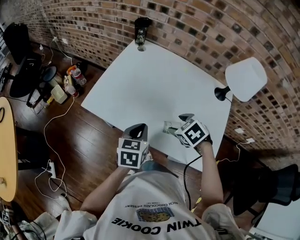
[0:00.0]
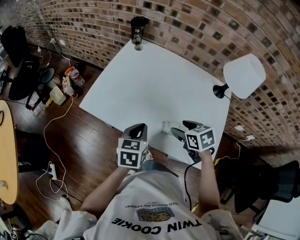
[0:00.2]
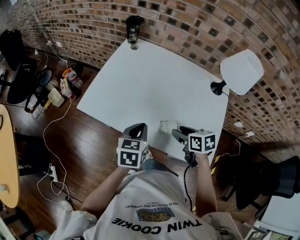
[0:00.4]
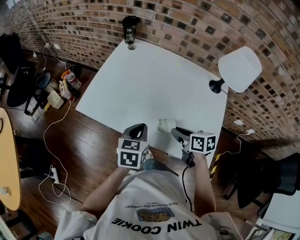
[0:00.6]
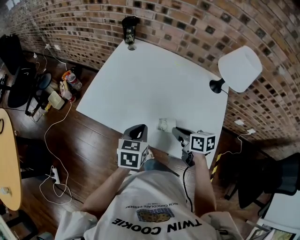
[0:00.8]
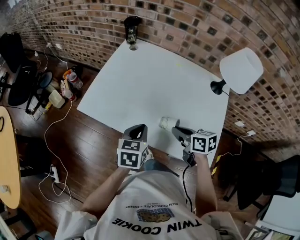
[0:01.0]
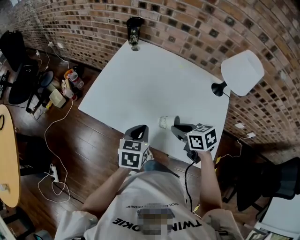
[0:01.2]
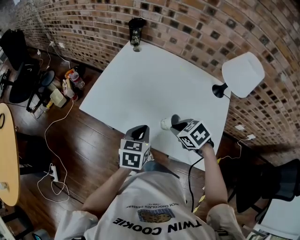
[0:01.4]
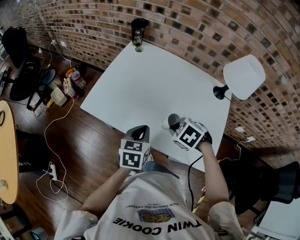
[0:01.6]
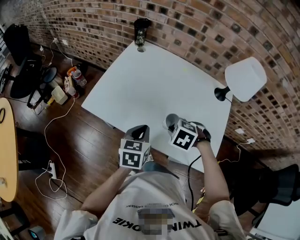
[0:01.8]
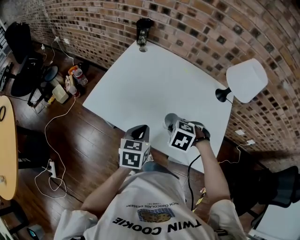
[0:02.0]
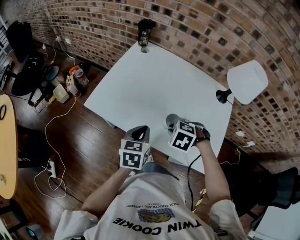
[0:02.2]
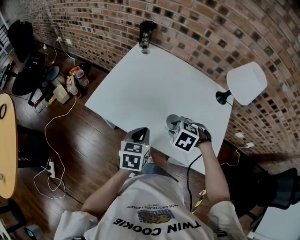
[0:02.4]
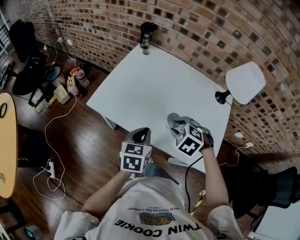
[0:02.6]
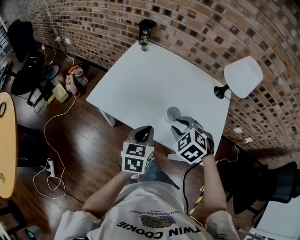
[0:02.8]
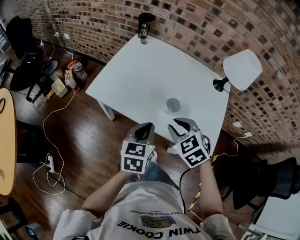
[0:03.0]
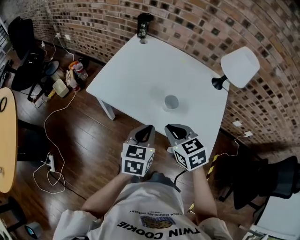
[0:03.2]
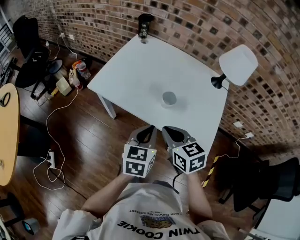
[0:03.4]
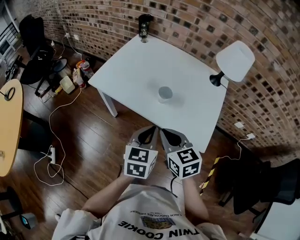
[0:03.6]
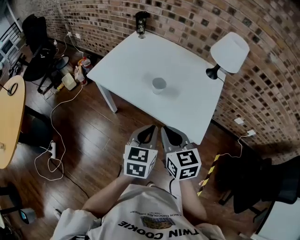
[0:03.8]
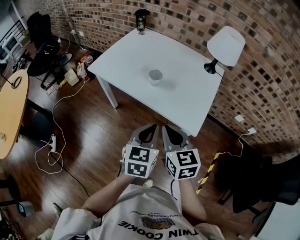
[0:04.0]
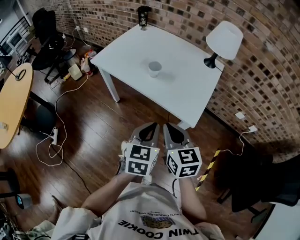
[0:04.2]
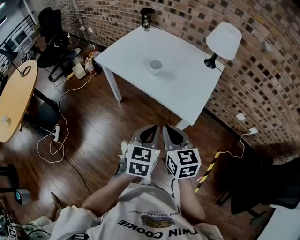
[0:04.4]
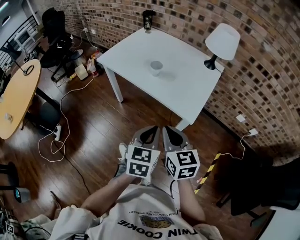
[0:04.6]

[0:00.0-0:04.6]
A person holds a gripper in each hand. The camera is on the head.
0:00.0 to 0:01.6: The right gripper closes its fingers.
0:01.6 to 0:03.0: The left gripper changes place by some 10 cm. The right gripper travels upward by about 10 cm, and rotates some 30 degrees.
0:03.0 to 0:04.6: Both grippers move backward and to the right, about 35 cm. The right gripper swivels some 40 degrees.

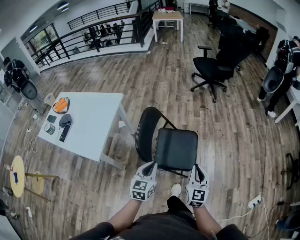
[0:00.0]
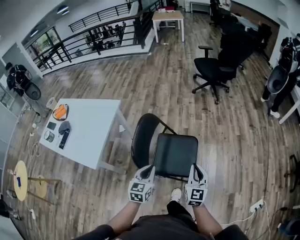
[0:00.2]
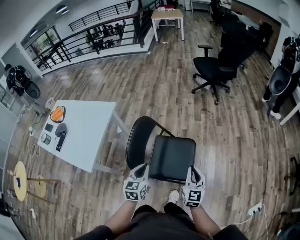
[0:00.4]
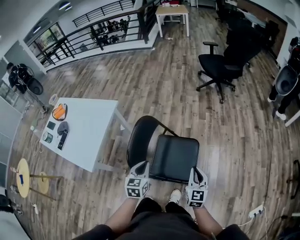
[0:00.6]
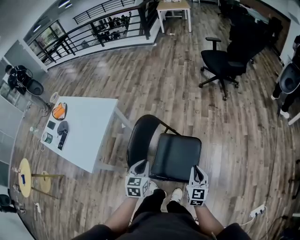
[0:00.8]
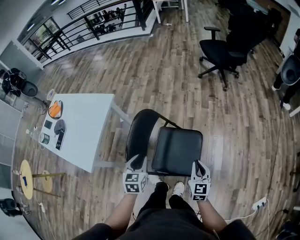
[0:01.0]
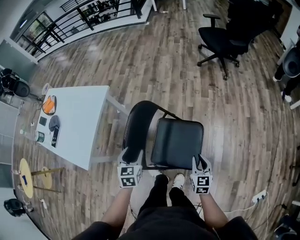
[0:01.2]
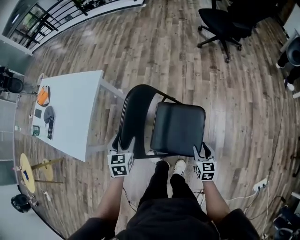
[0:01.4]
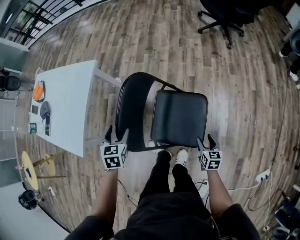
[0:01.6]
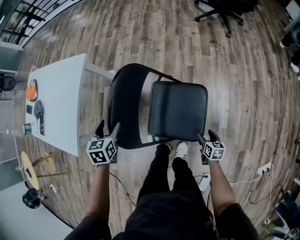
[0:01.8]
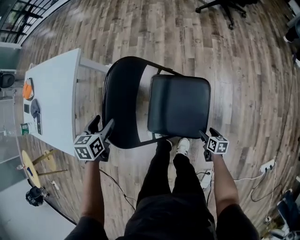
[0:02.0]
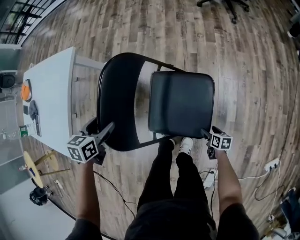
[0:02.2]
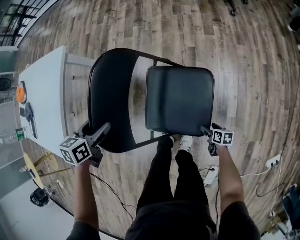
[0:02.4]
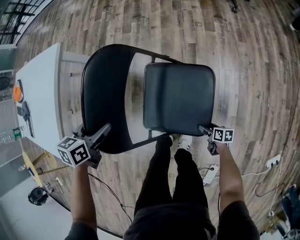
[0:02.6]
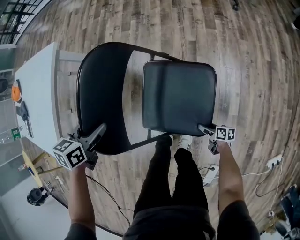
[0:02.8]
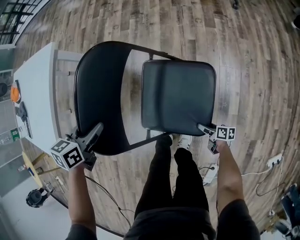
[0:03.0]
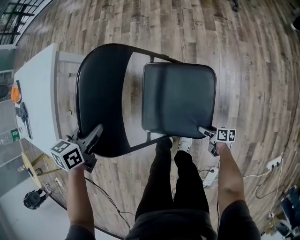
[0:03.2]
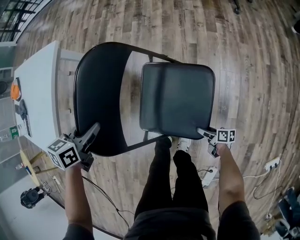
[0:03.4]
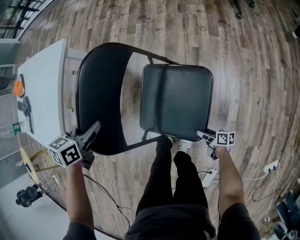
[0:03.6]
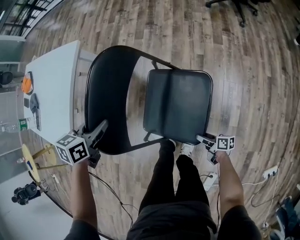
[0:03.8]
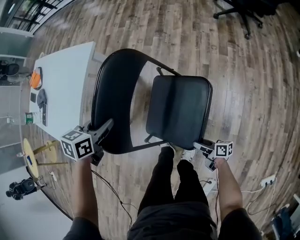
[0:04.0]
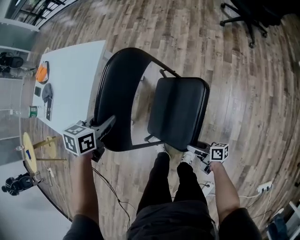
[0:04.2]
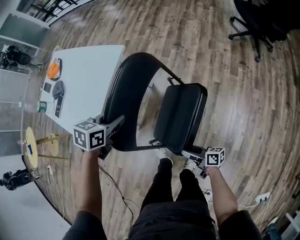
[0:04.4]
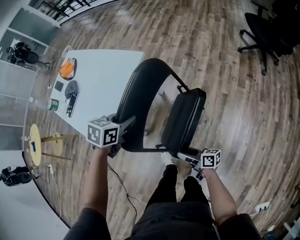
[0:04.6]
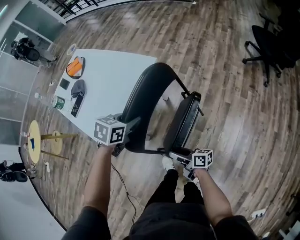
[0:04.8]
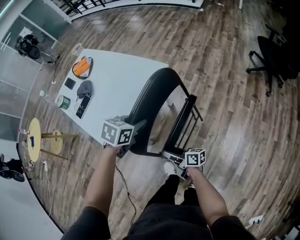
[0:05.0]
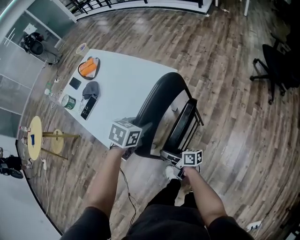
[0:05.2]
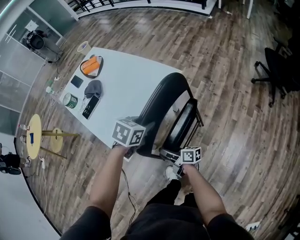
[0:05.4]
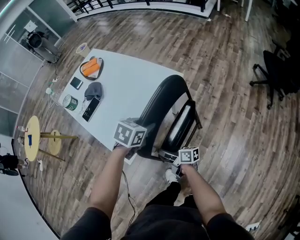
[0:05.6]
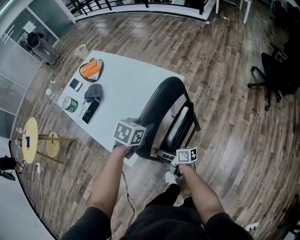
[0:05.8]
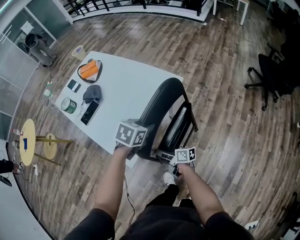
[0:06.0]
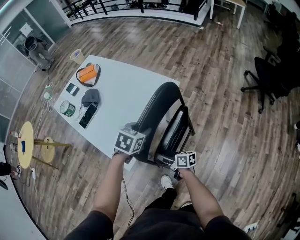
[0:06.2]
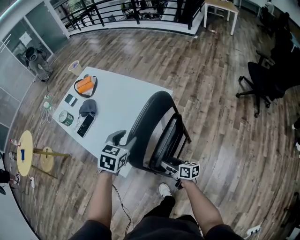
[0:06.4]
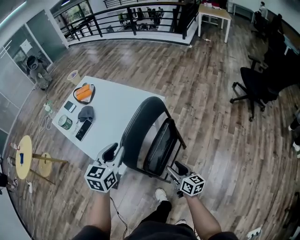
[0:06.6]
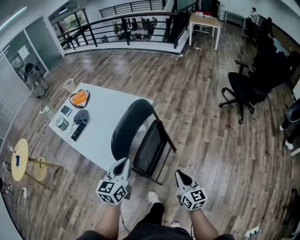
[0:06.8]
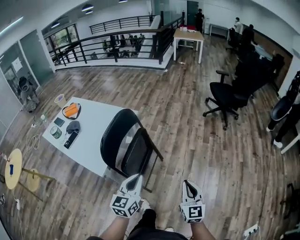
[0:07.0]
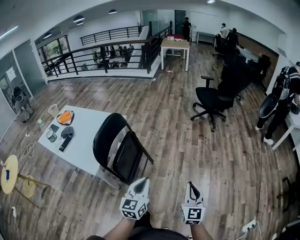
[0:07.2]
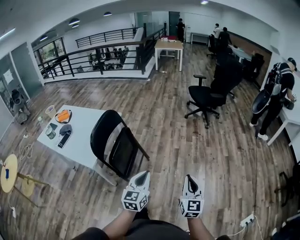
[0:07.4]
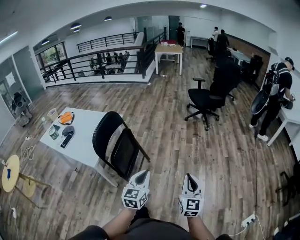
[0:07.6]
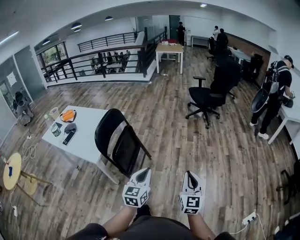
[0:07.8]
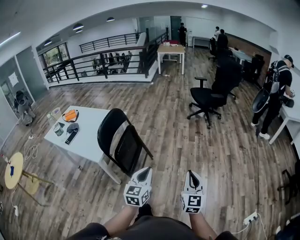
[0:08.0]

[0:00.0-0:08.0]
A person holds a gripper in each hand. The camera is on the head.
0:00.0 to 0:01.6: The right gripper goes about 35 cm downward and forward, points its fingers roughly 30 degrees further downward, and opens its fingers, while the left gripper goes approximately 30 cm forward, downward and to the left, changes its angle by some 30 degrees, and opens up.
0:01.6 to 0:03.2: The right gripper shifts approximately 30 cm downward, and changes its angle by about 50 degrees, while the left gripper heads downward, covering about 10 cm, changes its angle by roughly 30 degrees, and closes its fingers.
0:03.2 to 0:04.8: The left gripper travels upward, to the left and forward by about 25 cm. Meanwhile the right gripper goes about 60 cm upward, to the left and forward, and rotates some 40 degrees.
0:04.8 to 0:06.4: The left gripper heads to the left, upward and forward, covering some 15 cm, changes its angle by some 20 degrees, and opens its fingers, while the right gripper goes roughly 15 cm forward and to the left.
0:06.4 to 0:08.0: The pair of grippers is taken about 60 cm. The left gripper points its fingers approximately 30 degrees further upward, and closes up. Meanwhile the right gripper rotates approximately 80 degrees, and closes up.

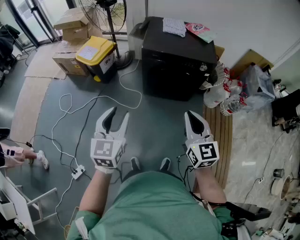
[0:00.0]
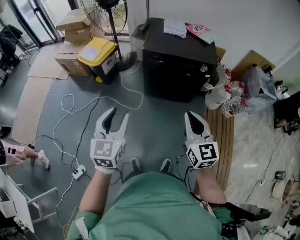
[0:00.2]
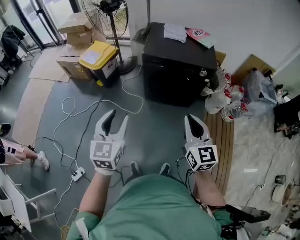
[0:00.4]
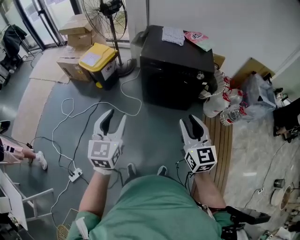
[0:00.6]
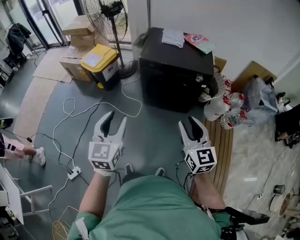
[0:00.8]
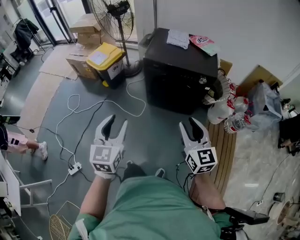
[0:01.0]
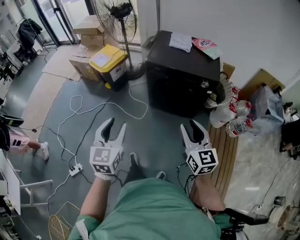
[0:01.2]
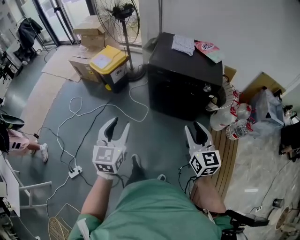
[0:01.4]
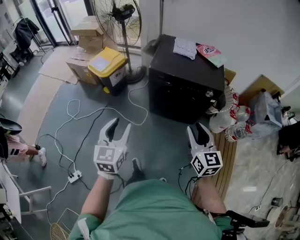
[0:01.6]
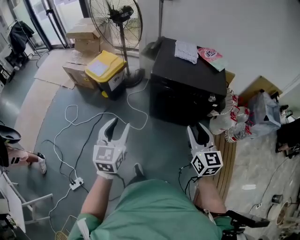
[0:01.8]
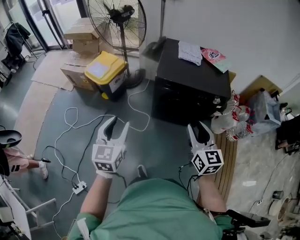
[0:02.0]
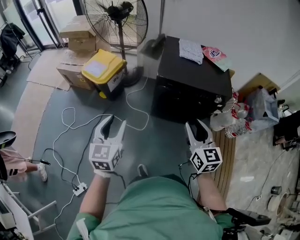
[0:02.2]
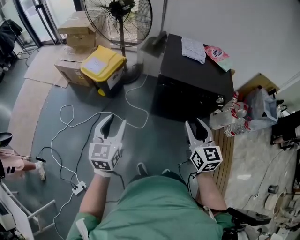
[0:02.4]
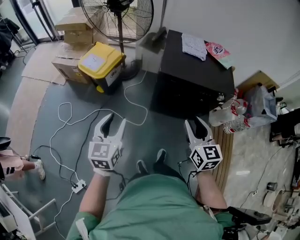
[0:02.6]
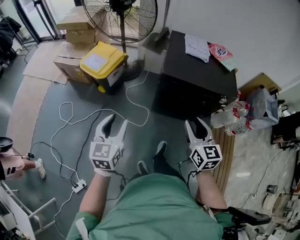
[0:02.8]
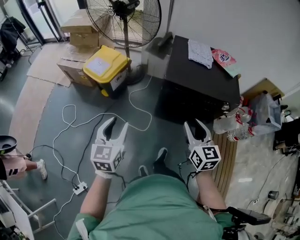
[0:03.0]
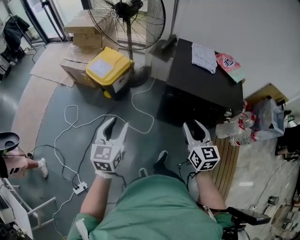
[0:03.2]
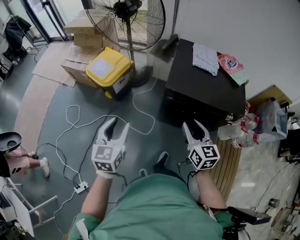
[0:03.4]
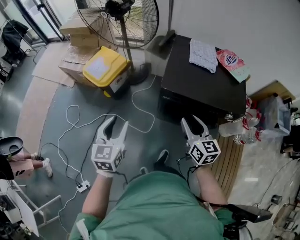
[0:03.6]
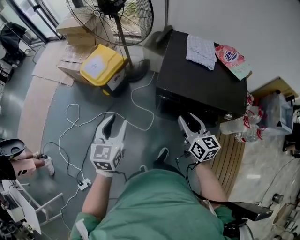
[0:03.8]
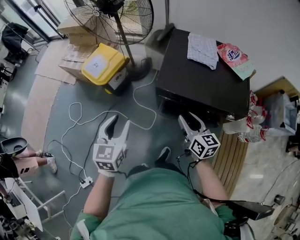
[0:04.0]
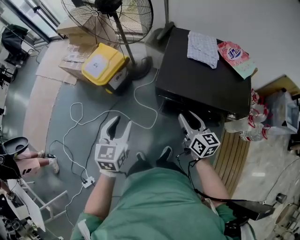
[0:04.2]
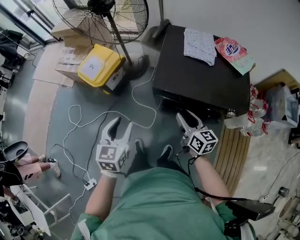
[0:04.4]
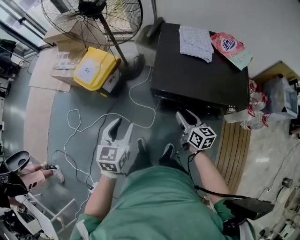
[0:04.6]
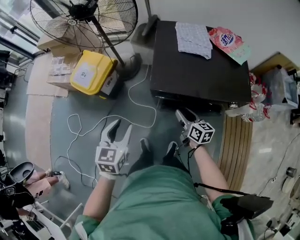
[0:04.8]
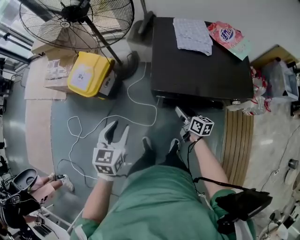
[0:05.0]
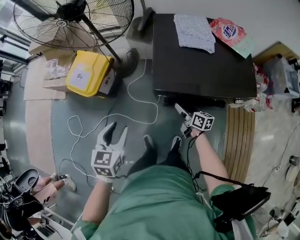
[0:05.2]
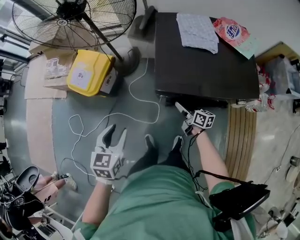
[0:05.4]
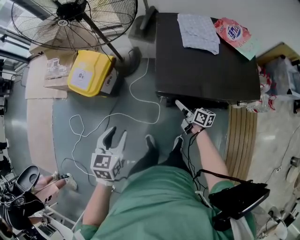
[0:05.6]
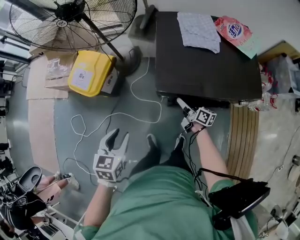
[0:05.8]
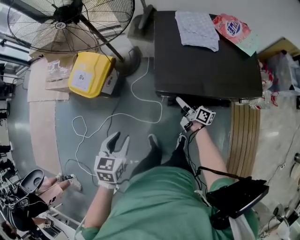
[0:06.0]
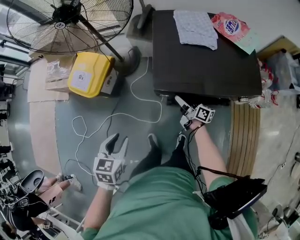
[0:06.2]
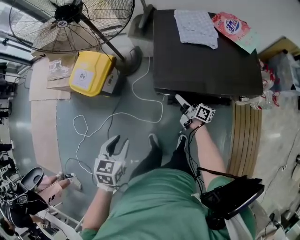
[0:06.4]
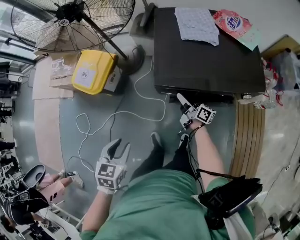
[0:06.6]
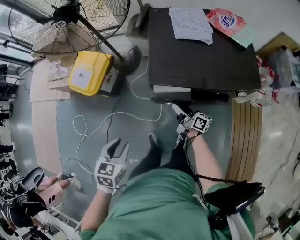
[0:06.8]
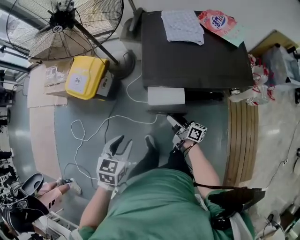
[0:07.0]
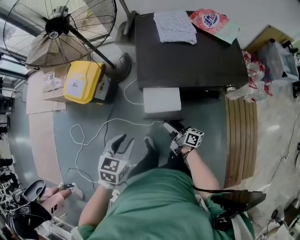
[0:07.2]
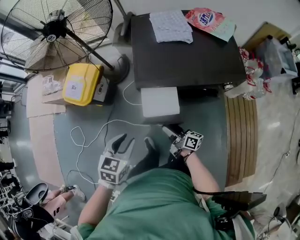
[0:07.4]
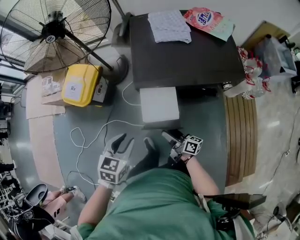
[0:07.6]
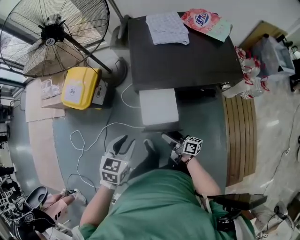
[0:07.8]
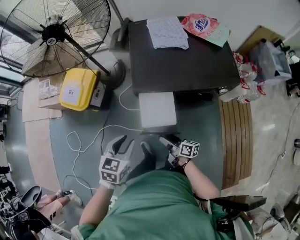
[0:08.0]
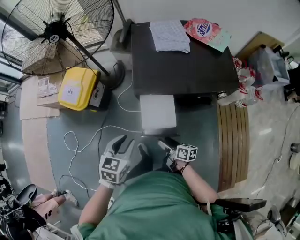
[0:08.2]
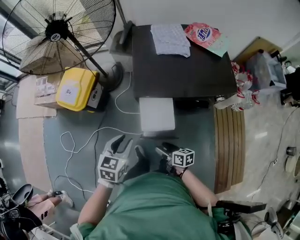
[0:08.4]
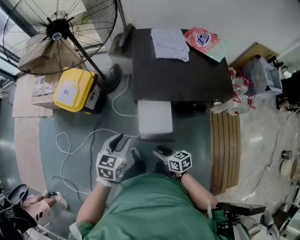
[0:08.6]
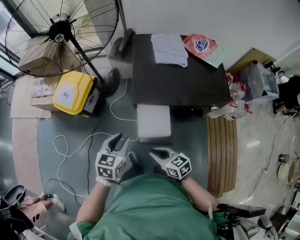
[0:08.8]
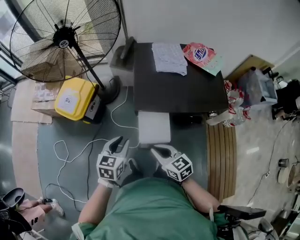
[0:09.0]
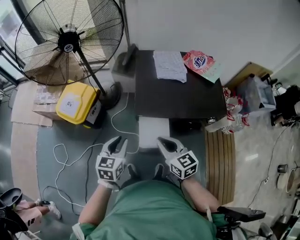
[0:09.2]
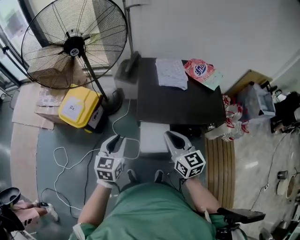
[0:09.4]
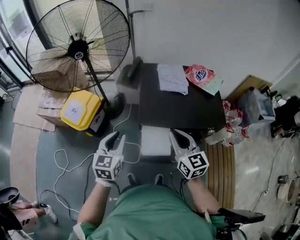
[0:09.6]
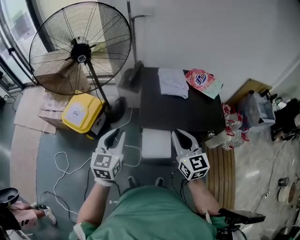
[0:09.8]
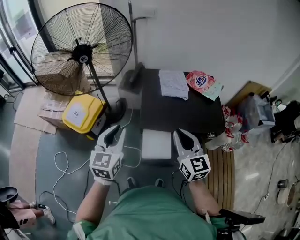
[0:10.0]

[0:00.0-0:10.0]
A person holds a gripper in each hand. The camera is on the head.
0:00.0 to 0:01.4: Both grippers travel together to the right, approximately 10 cm. The right gripper opens.
0:01.4 to 0:02.8: Both grippers travel together forward and to the left, roughly 30 cm.
0:02.8 to 0:04.2: The right gripper is displaced forward, to the right and downward by roughly 25 cm, and rotates some 30 degrees. Meanwhile the left gripper is displaced forward and to the right by some 20 cm.
0:04.2 to 0:05.8: The left gripper is displaced downward, forward and to the left by about 15 cm, and turns by approximately 20 degrees. The right gripper travels downward and forward by approximately 25 cm, swivels roughly 30 degrees, and opens its fingers.
0:05.8 to 0:07.2: The right gripper moves backward, roughly 15 cm. The left gripper heads to the right and backward, covering roughly 10 cm.
0:07.2 to 0:08.6: The right gripper moves backward, roughly 10 cm, points its fingers about 30 degrees further downward, and closes its fingers.
0:08.6 to 0:10.0: The right gripper heads upward and forward, covering roughly 35 cm, changes its angle by approximately 60 degrees, and closes up, while the left gripper travels upward and forward by some 20 cm, and rotates roughly 30 degrees.
